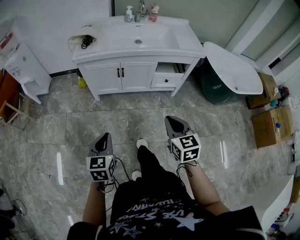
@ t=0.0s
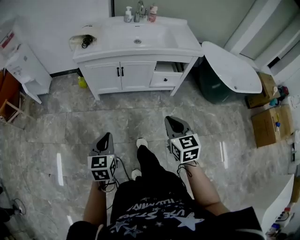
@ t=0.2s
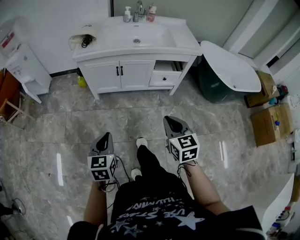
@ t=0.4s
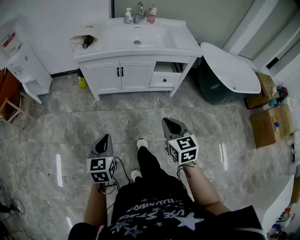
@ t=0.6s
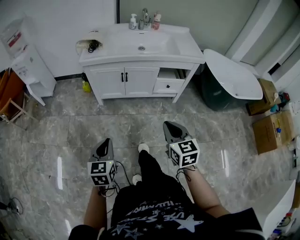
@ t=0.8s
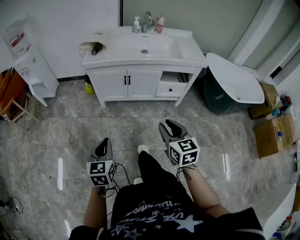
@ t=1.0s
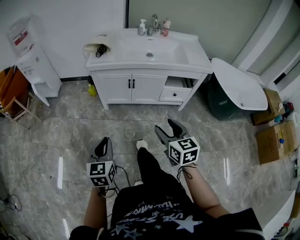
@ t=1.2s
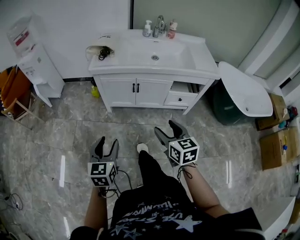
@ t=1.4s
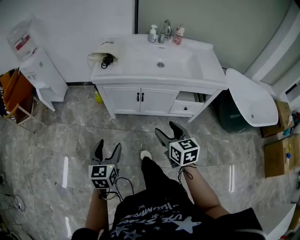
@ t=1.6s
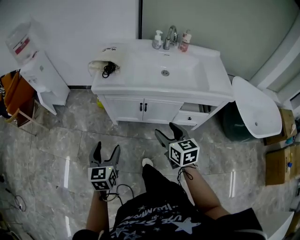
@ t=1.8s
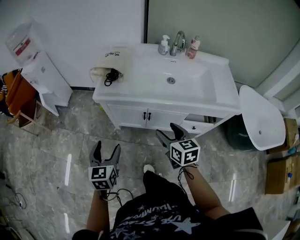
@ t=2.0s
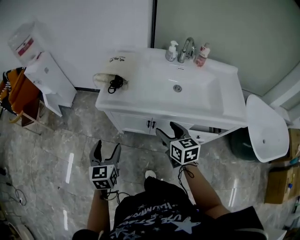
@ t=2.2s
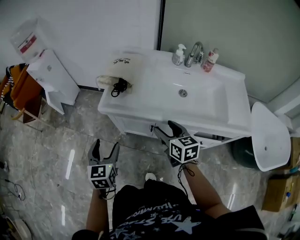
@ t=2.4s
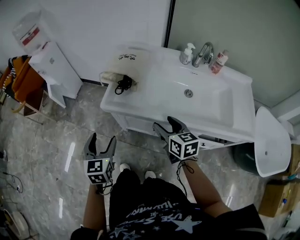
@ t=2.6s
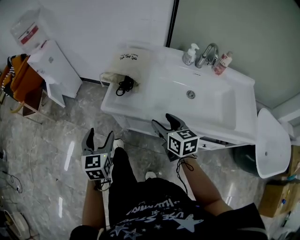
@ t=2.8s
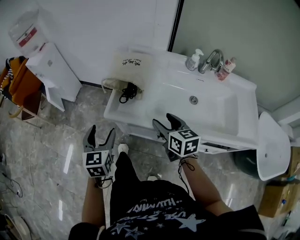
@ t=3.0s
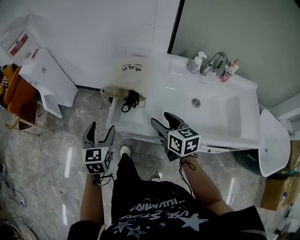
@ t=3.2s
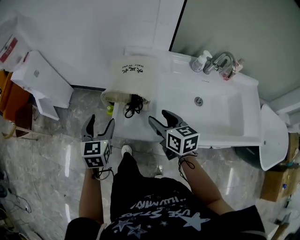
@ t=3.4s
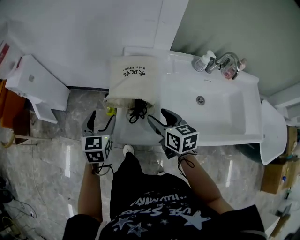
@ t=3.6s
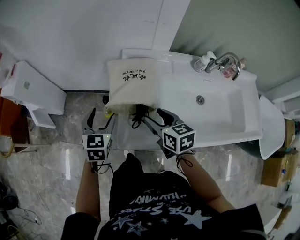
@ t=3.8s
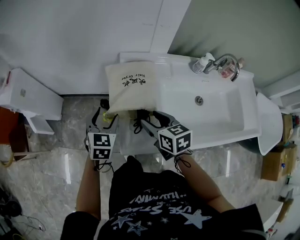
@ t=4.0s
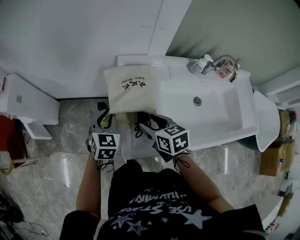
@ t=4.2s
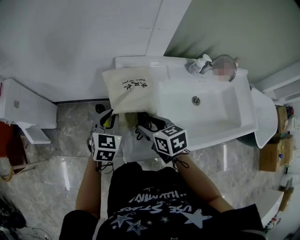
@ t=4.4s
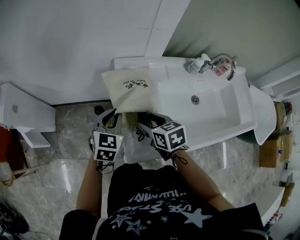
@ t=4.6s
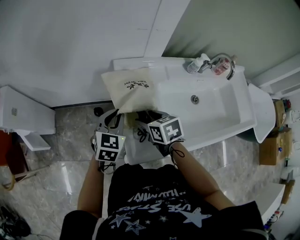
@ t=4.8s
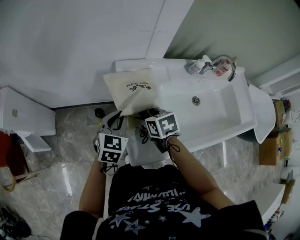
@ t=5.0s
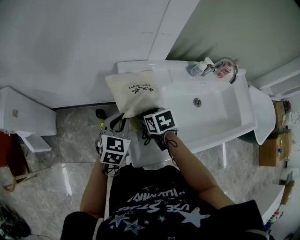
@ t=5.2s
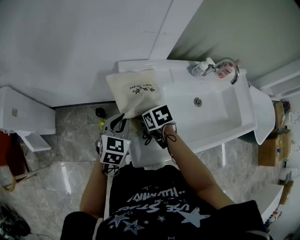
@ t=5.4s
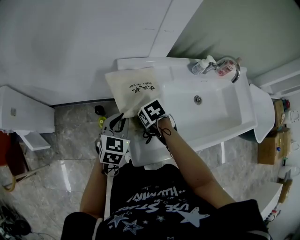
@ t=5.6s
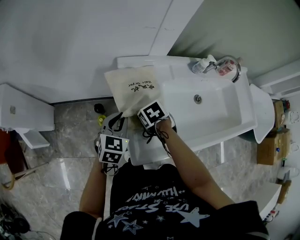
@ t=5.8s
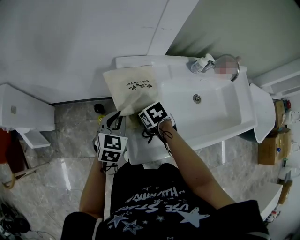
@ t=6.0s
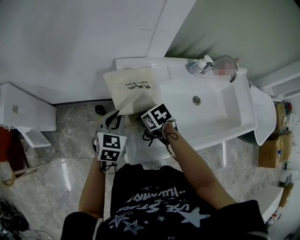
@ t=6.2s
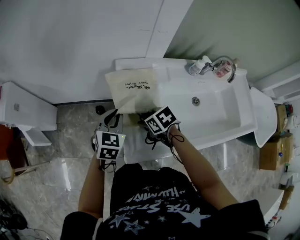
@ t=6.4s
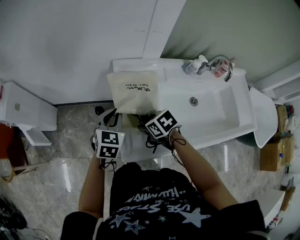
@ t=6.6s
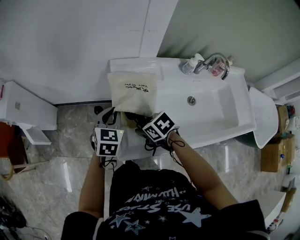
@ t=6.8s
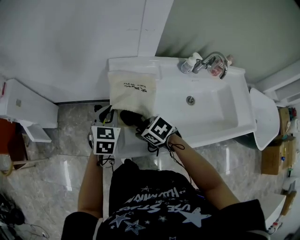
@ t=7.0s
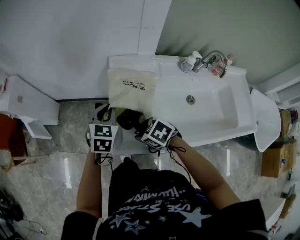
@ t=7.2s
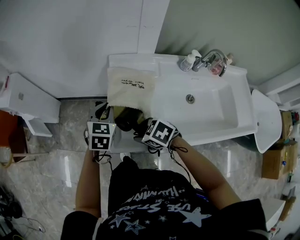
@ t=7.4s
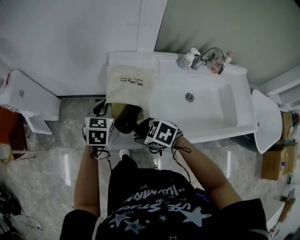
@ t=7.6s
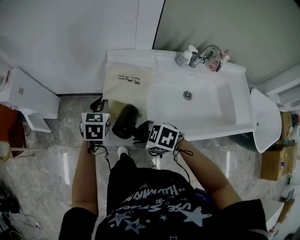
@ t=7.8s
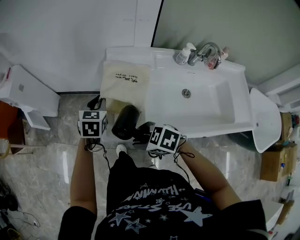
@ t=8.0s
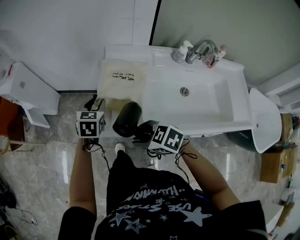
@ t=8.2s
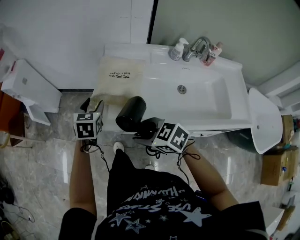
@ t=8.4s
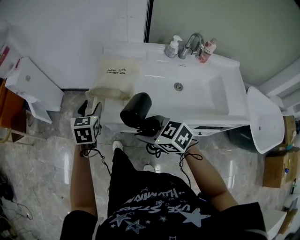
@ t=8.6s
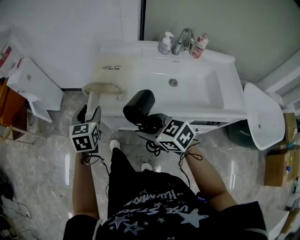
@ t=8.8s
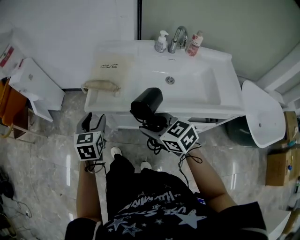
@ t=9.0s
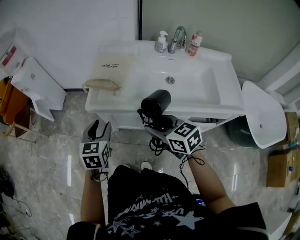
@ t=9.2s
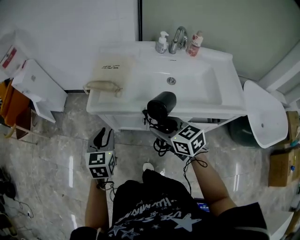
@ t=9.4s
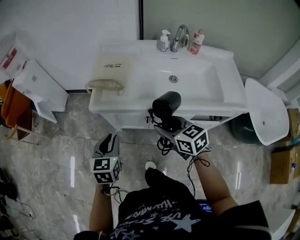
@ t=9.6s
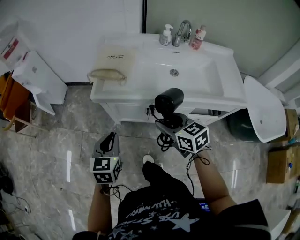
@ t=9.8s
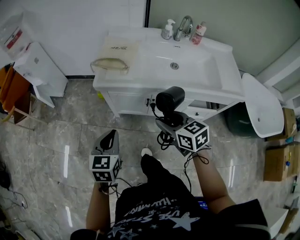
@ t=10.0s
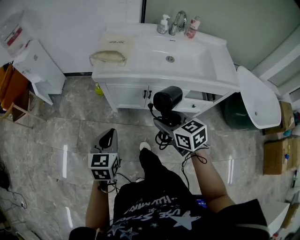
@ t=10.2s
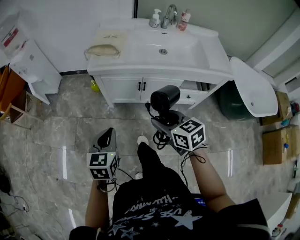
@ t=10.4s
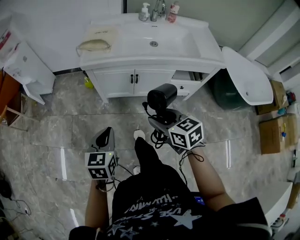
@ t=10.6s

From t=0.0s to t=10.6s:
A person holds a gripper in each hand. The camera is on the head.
From t=0.0s to t=1.6s: The left gripper goes approximately 15 cm forward, and opens up, while the right gripper shifts roughly 20 cm forward and to the left, and opens up.
From t=1.6s to t=3.0s: The grippers both shift forward by some 40 cm.
From t=3.0s to t=4.6s: The right gripper is displaced forward and to the left by some 25 cm, and rotates some 20 degrees; the left gripper shifts some 30 cm forward, rotates about 40 degrees, and closes.
From t=4.6s to t=6.0s: The right gripper shifts about 10 cm downward, and swivels some 20 degrees.
From t=6.0s to t=7.6s: The left gripper ends up about 5 cm from where it was; the right gripper shifts by roughly 20 cm, and rotates about 40 degrees.
From t=7.6s to t=9.0s: Both grippers move backward, some 25 cm. The right gripper changes its angle by about 30 degrees; the left gripper opens up.
From t=9.0s to t=10.6s: The two grippers go some 30 cm backward. The left gripper closes up.
